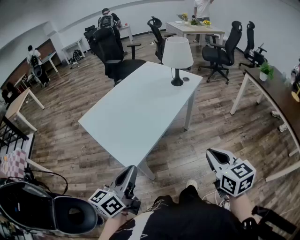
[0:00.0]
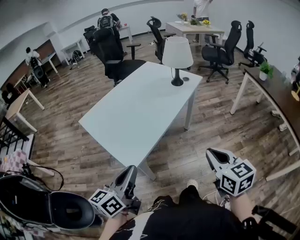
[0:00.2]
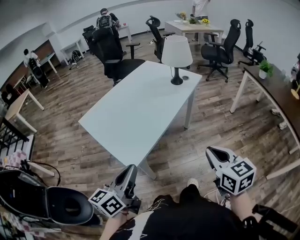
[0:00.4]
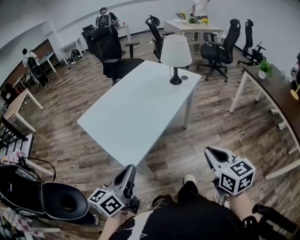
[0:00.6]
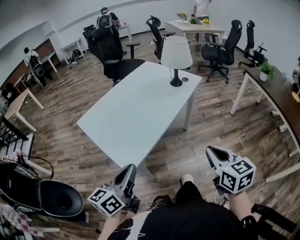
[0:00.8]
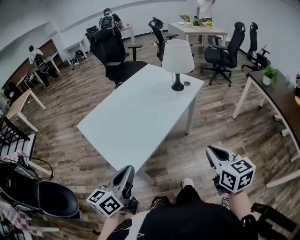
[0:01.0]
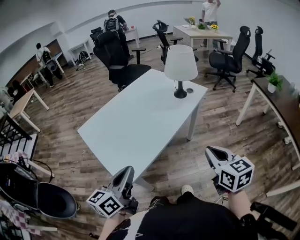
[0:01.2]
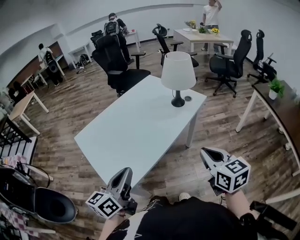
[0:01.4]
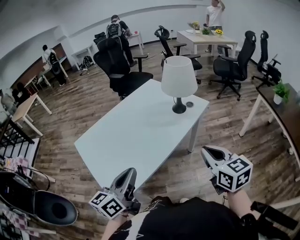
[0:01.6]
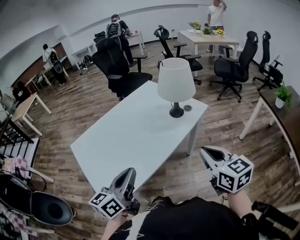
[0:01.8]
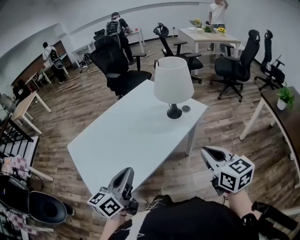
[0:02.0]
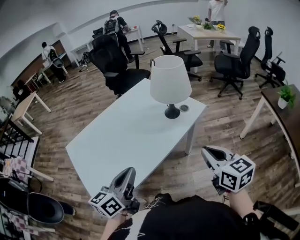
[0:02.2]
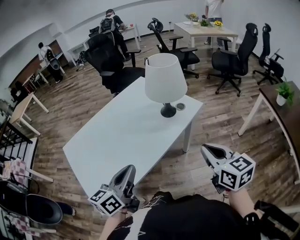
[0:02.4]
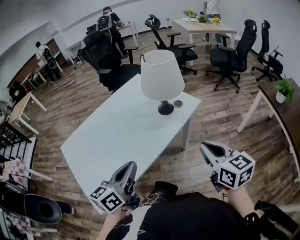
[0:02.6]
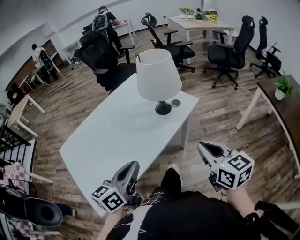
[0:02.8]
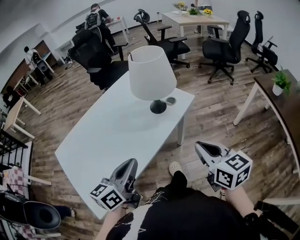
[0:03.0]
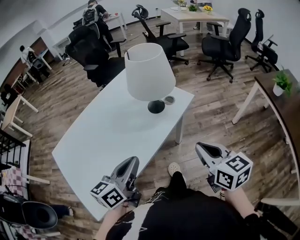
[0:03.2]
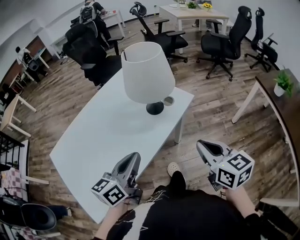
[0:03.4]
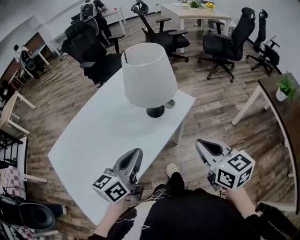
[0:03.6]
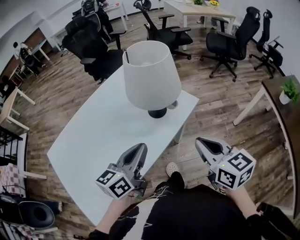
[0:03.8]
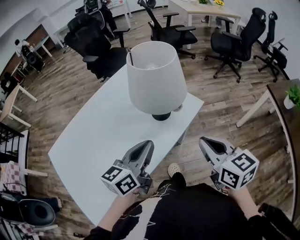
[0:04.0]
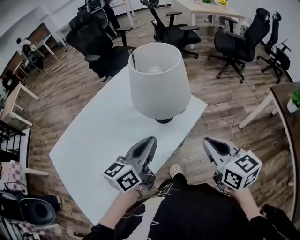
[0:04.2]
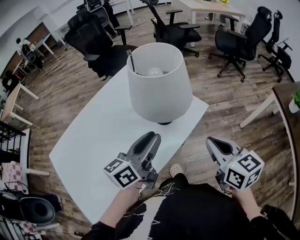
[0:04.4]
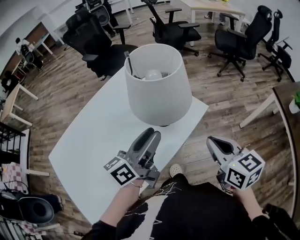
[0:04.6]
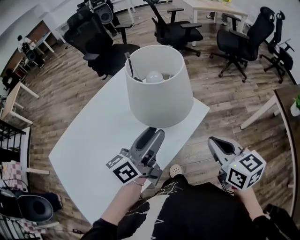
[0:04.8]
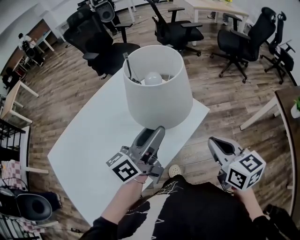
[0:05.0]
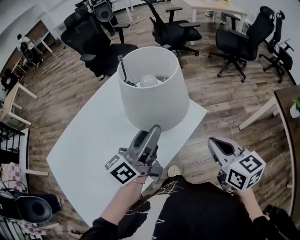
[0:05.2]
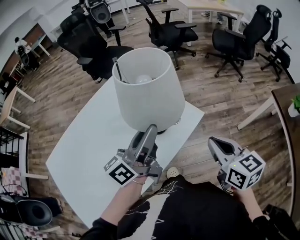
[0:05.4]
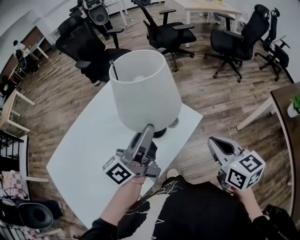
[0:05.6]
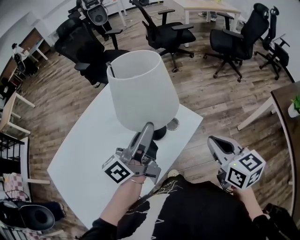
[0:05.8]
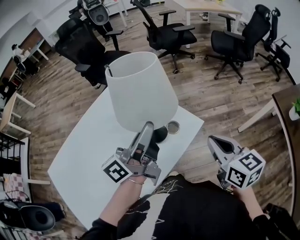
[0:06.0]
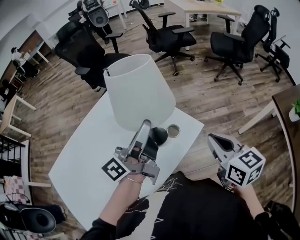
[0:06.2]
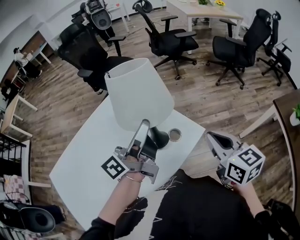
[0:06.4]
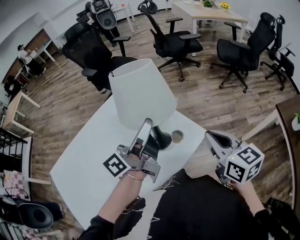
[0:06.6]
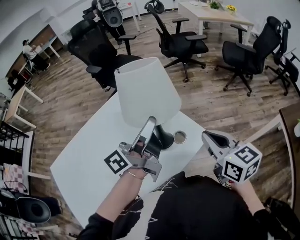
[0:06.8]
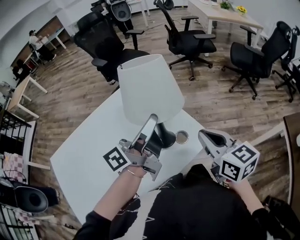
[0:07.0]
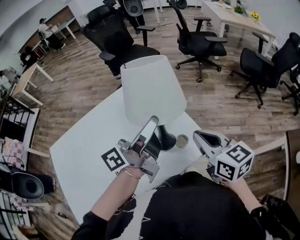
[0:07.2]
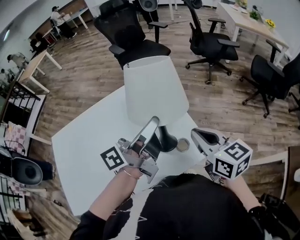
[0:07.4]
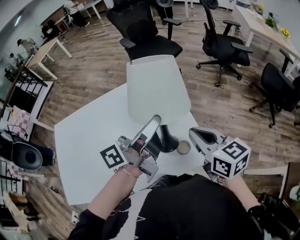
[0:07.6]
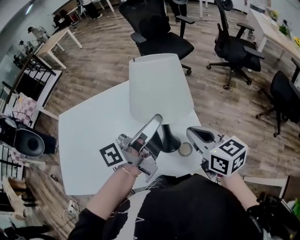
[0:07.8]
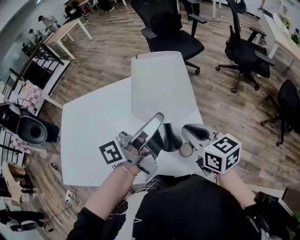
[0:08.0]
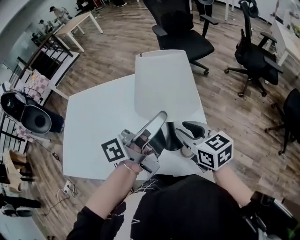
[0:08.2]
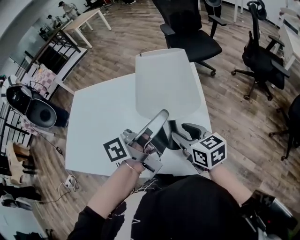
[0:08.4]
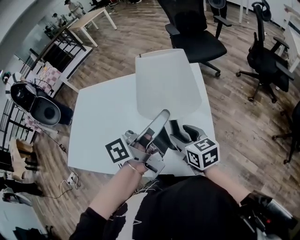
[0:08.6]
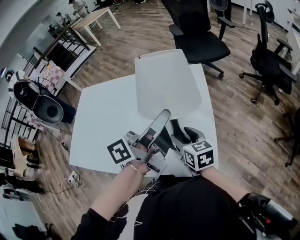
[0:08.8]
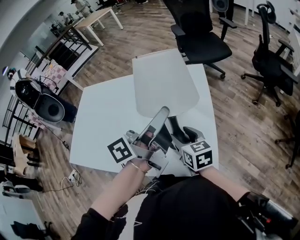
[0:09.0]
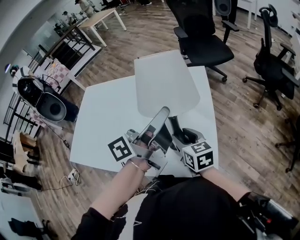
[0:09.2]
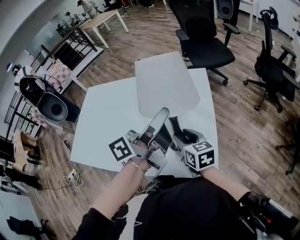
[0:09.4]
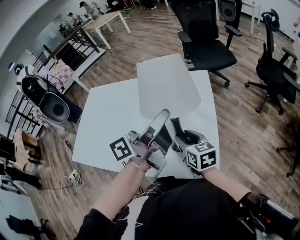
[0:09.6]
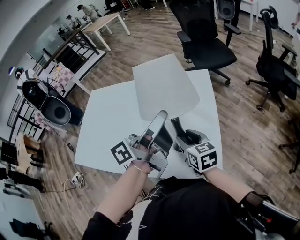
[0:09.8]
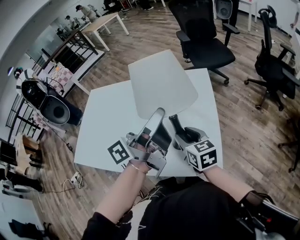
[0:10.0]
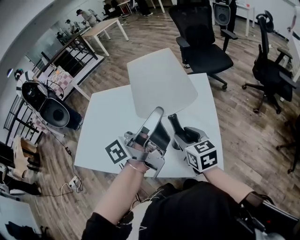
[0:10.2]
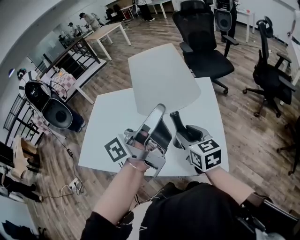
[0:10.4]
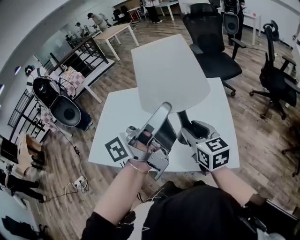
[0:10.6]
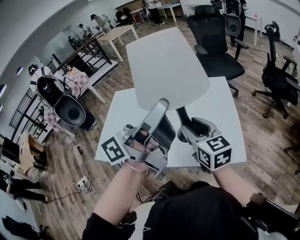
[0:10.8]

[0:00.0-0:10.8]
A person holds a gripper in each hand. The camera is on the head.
0:00.0 to 0:01.6: The right gripper heads forward, covering approximately 25 cm. The left gripper goes roughly 20 cm forward and to the right.
0:01.6 to 0:03.0: Both grippers travel together forward and to the right, approximately 15 cm.
0:03.0 to 0:04.6: The two grippers go roughly 20 cm forward. The left gripper opens up.
0:04.6 to 0:06.2: The right gripper goes approximately 10 cm forward. The left gripper is displaced forward and upward by about 15 cm, changes its angle by roughly 20 degrees, and closes its fingers.
0:06.2 to 0:07.8: The left gripper ends up about 5 cm from where it was. The right gripper changes place by roughly 20 cm, and swivels approximately 40 degrees.
0:07.8 to 0:09.2: The left gripper swivels about 20 degrees. Meanwhile the right gripper shifts approximately 15 cm downward and to the left, and opens up.
0:09.2 to 0:10.8: Both grippers travel together upward, to the left and backward, some 25 cm. The left gripper rotates about 20 degrees.

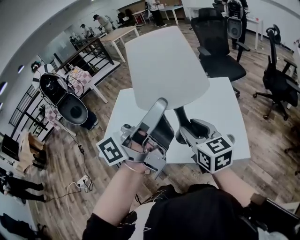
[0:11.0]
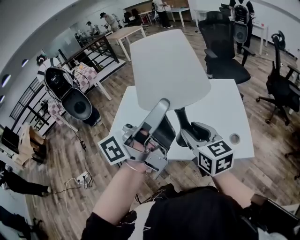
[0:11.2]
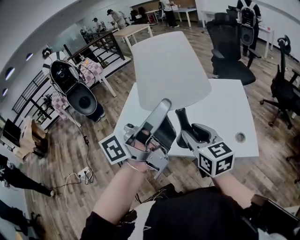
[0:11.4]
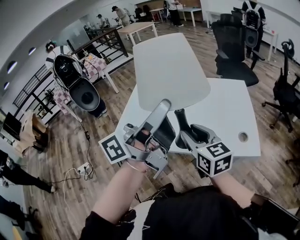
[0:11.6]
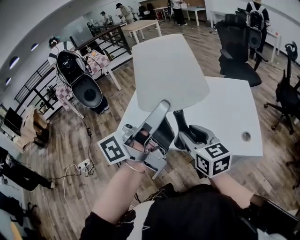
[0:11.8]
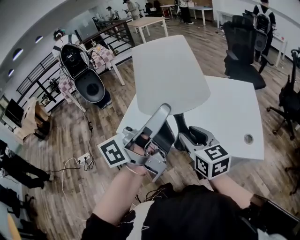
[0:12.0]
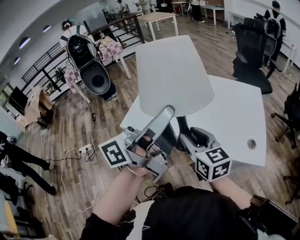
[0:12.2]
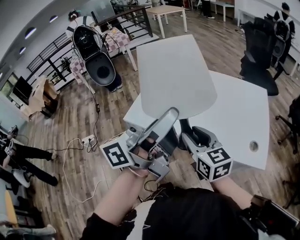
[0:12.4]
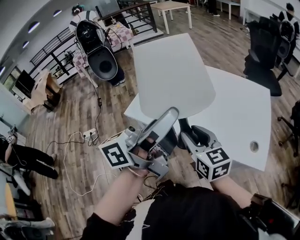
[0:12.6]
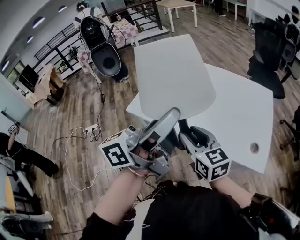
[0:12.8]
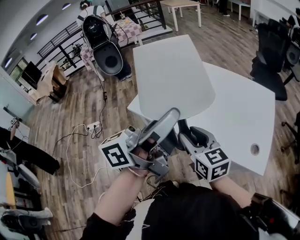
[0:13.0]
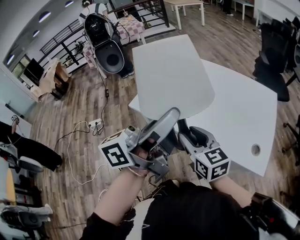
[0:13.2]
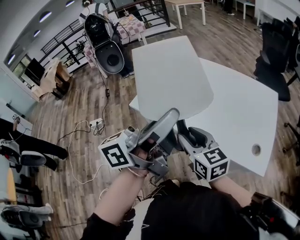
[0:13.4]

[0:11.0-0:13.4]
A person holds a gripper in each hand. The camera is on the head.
0:11.0 to 0:12.2: Both grippers move to the left and backward, about 15 cm.
0:12.2 to 0:13.4: The grippers move only a little.

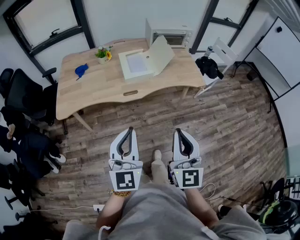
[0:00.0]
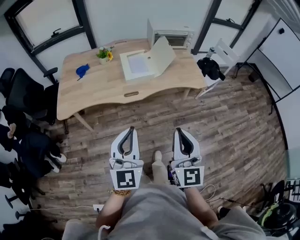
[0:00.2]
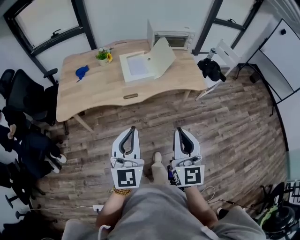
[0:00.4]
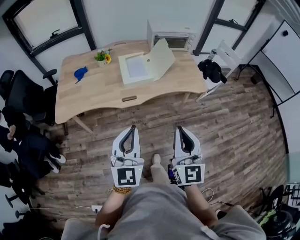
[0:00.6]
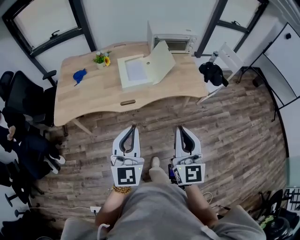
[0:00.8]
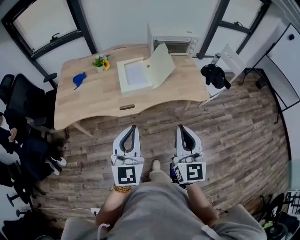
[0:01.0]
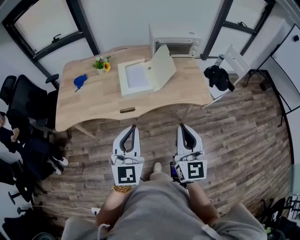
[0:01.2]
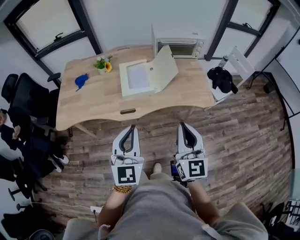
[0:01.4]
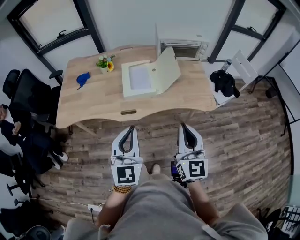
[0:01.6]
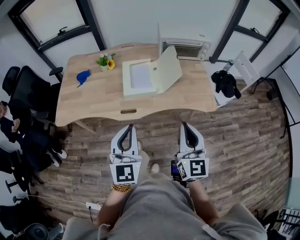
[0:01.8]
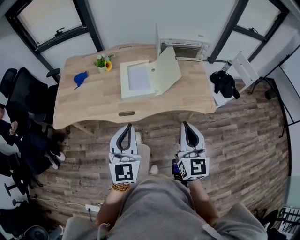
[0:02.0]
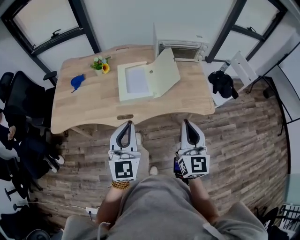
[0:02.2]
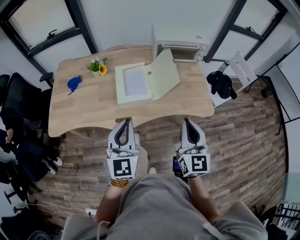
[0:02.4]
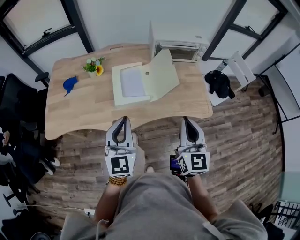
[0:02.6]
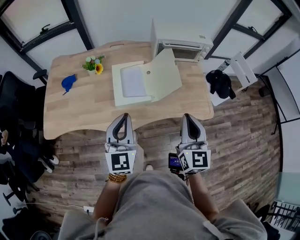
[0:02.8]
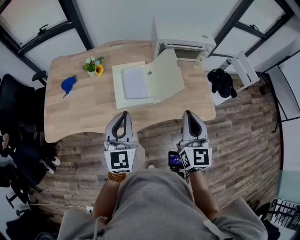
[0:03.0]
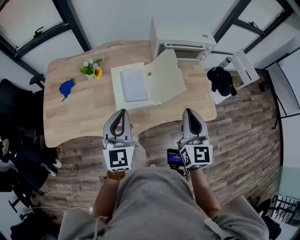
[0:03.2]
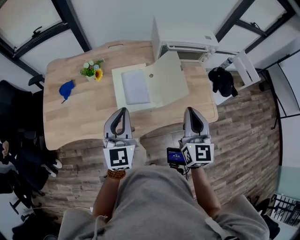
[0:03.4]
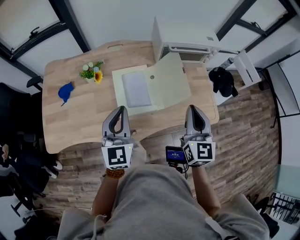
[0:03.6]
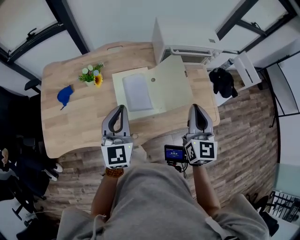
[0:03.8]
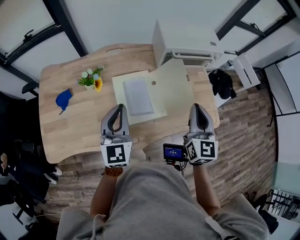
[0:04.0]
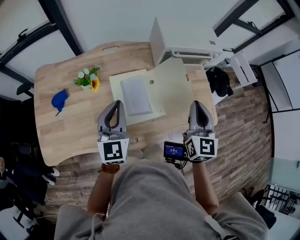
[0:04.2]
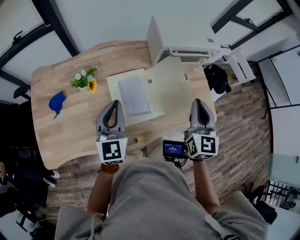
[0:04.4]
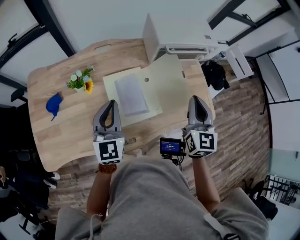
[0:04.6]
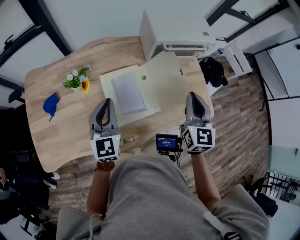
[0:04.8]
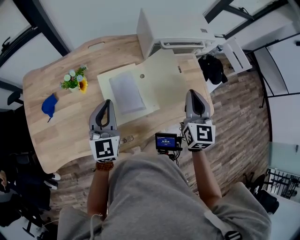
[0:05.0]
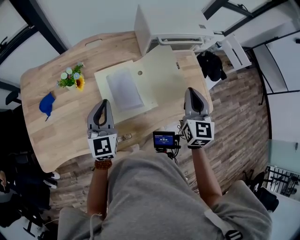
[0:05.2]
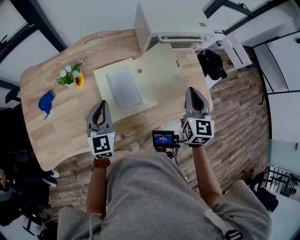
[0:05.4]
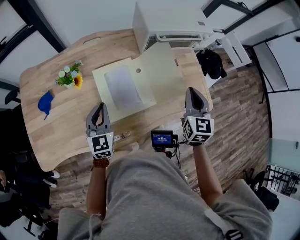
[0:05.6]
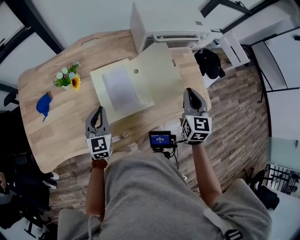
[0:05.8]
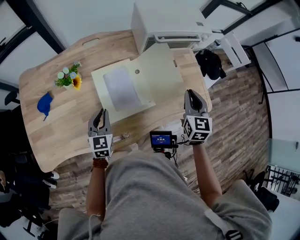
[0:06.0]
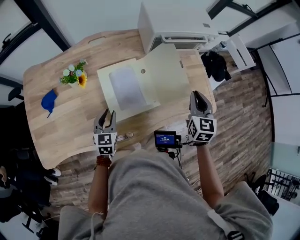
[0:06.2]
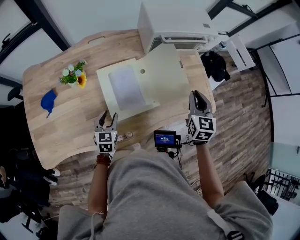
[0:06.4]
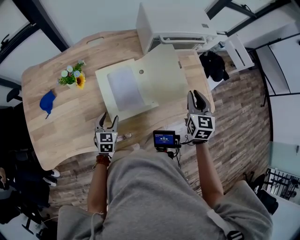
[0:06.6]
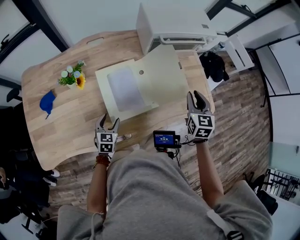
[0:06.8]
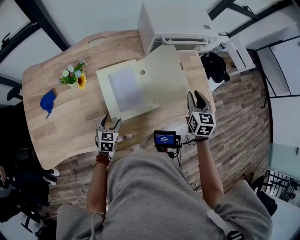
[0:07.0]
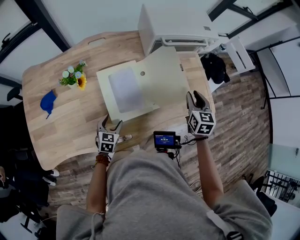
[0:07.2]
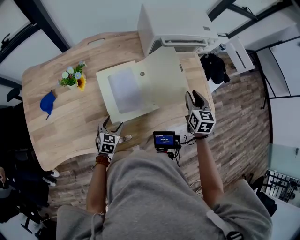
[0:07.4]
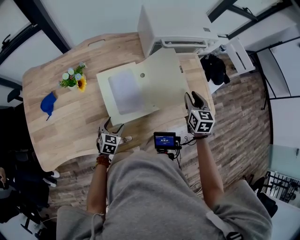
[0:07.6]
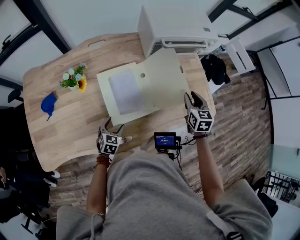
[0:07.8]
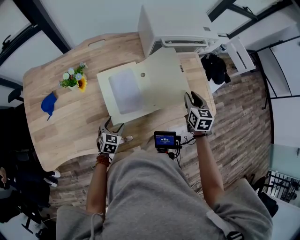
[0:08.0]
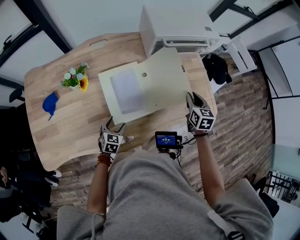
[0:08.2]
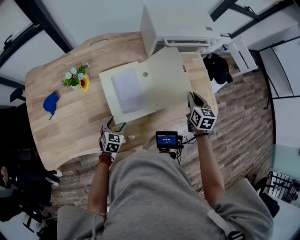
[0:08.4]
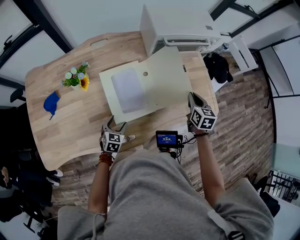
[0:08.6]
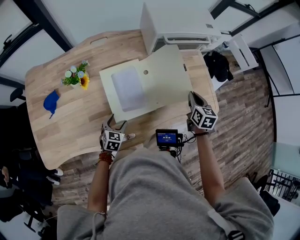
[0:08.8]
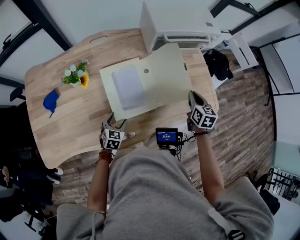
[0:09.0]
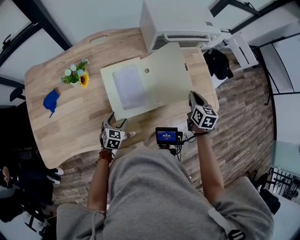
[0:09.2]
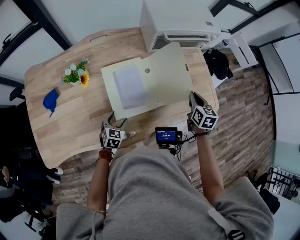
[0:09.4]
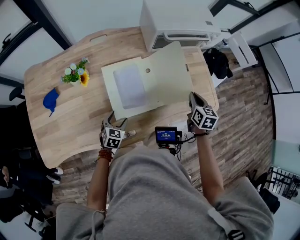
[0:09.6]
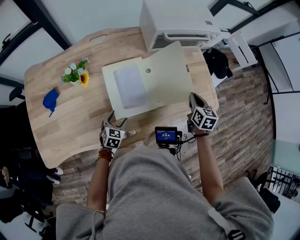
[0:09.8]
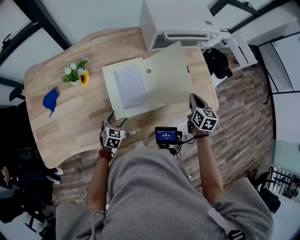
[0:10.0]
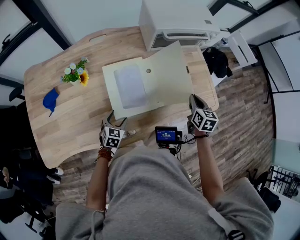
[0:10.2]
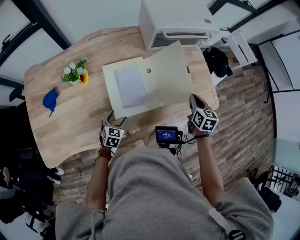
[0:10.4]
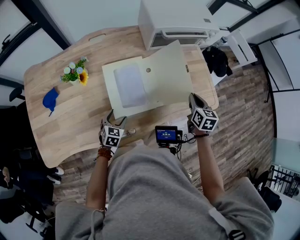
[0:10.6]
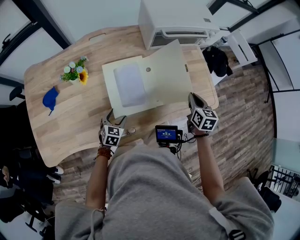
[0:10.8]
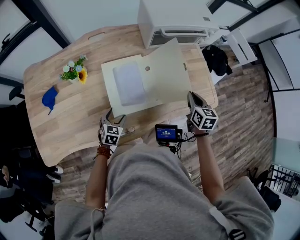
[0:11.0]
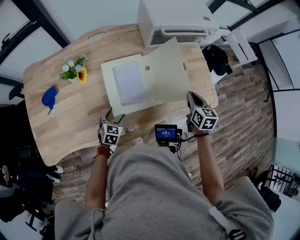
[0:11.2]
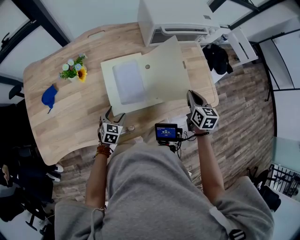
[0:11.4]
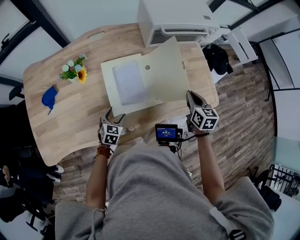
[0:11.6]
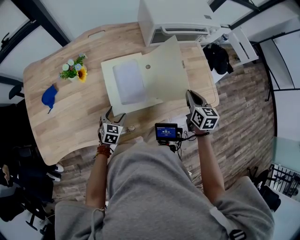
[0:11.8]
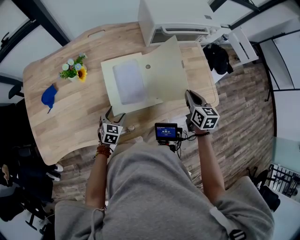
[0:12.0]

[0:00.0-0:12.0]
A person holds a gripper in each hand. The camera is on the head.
0:00.0 to 0:01.6: The grippers both shift forward and to the right by approximately 25 cm.
0:01.6 to 0:03.0: Both grippers move forward, some 20 cm.
0:03.0 to 0:04.4: The right gripper moves forward, roughly 15 cm, while the left gripper travels forward and to the left by approximately 20 cm.
0:04.4 to 0:06.0: The right gripper heads downward and to the right, covering roughly 15 cm, while the left gripper shifts some 20 cm downward.
0:06.0 to 0:07.6: The right gripper travels downward by some 5 cm, and opens. Meanwhile the left gripper goes some 15 cm downward, swivels about 30 degrees, and opens its fingers.
0:07.6 to 0:09.0: The right gripper closes its fingers.
0:09.0 to 0:12.0: The grippers stay close to where they were, moving slightly.
